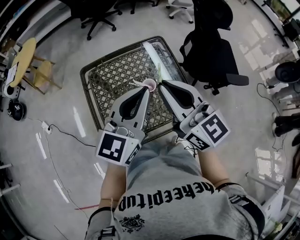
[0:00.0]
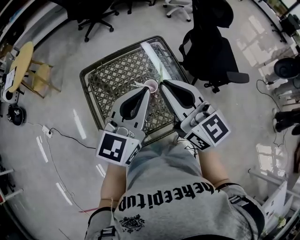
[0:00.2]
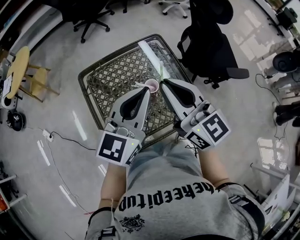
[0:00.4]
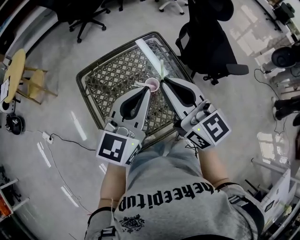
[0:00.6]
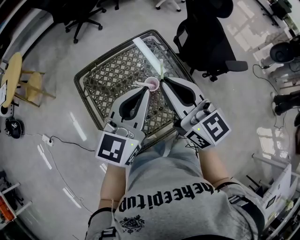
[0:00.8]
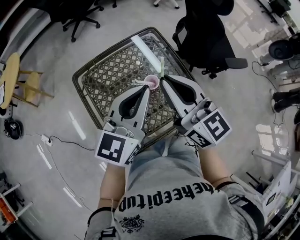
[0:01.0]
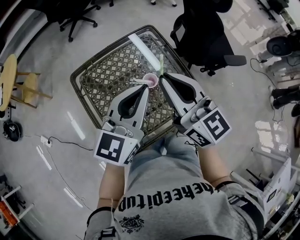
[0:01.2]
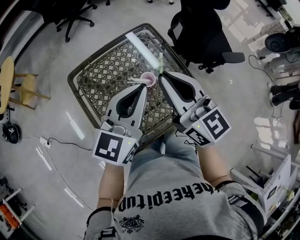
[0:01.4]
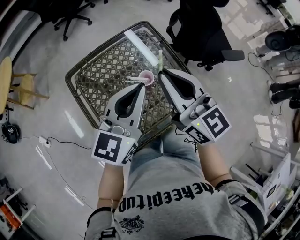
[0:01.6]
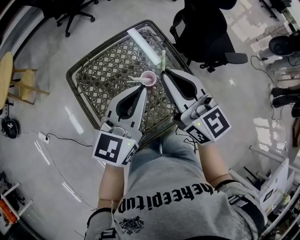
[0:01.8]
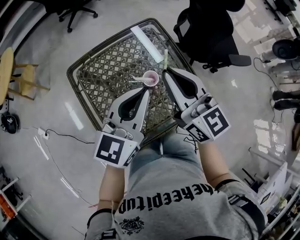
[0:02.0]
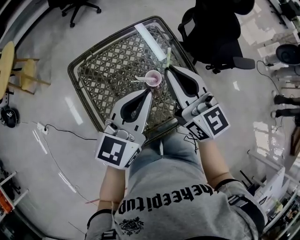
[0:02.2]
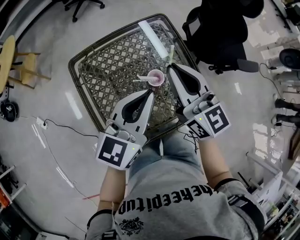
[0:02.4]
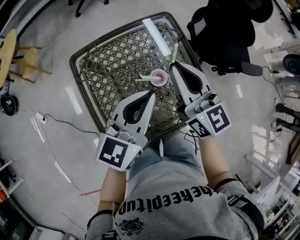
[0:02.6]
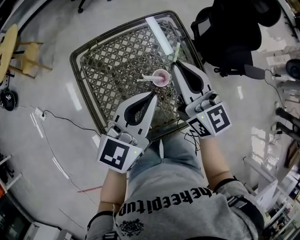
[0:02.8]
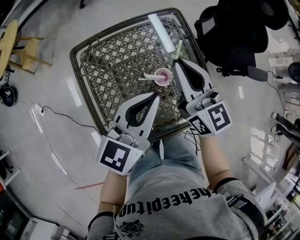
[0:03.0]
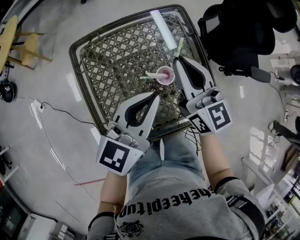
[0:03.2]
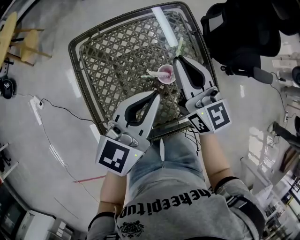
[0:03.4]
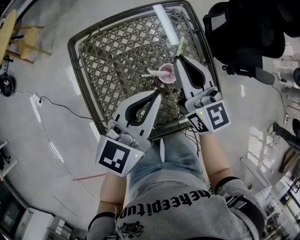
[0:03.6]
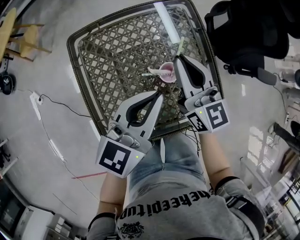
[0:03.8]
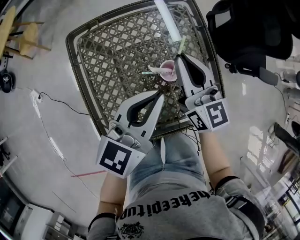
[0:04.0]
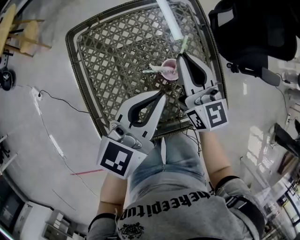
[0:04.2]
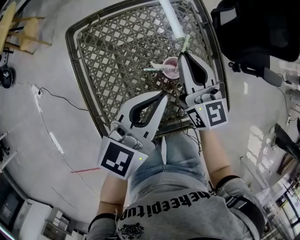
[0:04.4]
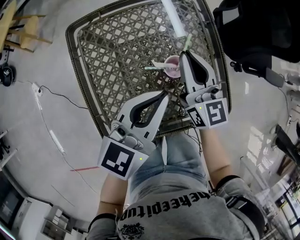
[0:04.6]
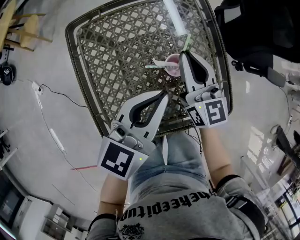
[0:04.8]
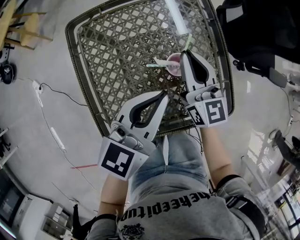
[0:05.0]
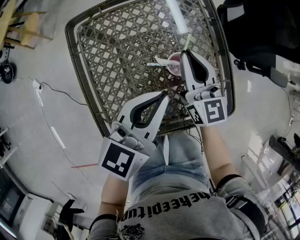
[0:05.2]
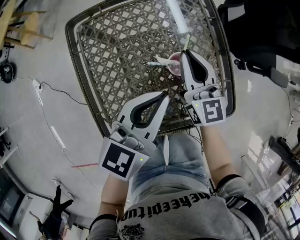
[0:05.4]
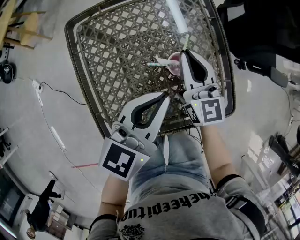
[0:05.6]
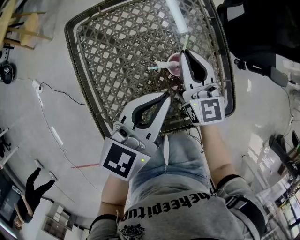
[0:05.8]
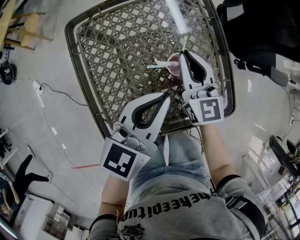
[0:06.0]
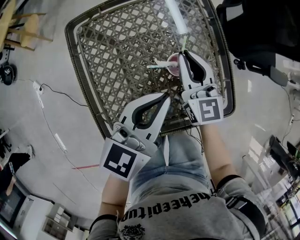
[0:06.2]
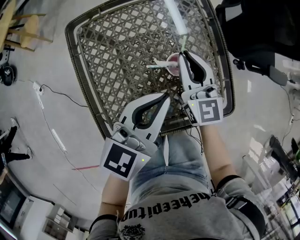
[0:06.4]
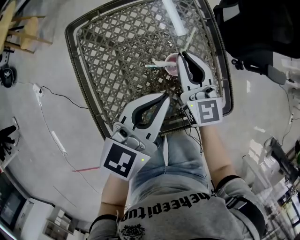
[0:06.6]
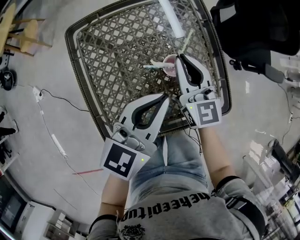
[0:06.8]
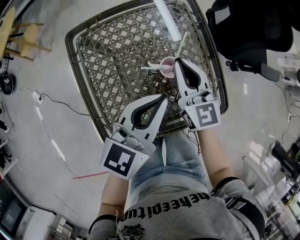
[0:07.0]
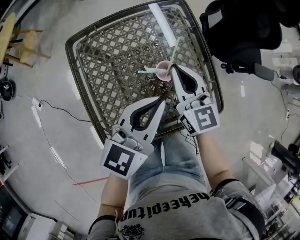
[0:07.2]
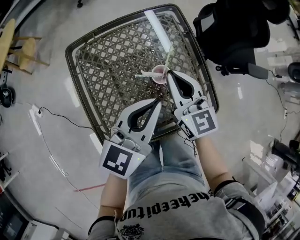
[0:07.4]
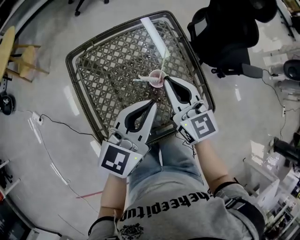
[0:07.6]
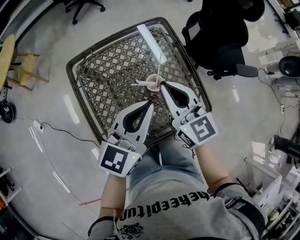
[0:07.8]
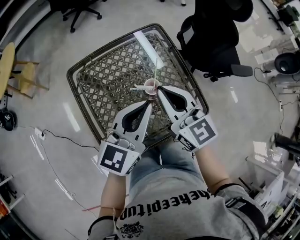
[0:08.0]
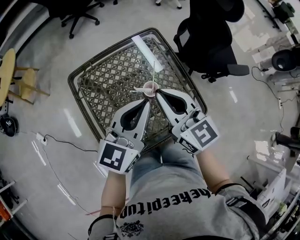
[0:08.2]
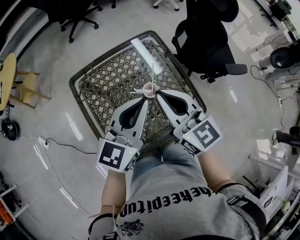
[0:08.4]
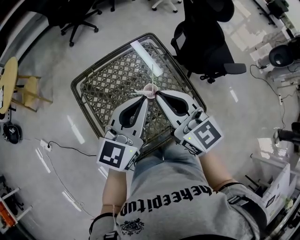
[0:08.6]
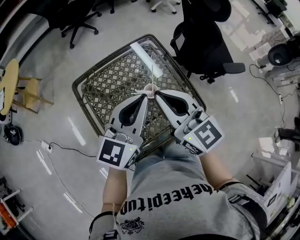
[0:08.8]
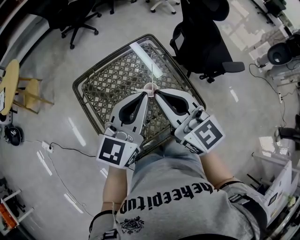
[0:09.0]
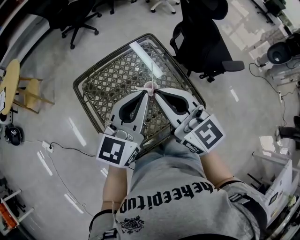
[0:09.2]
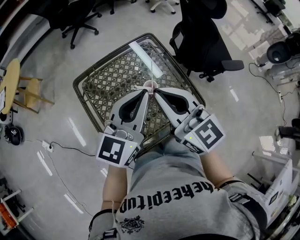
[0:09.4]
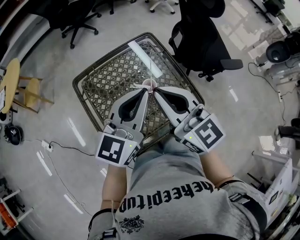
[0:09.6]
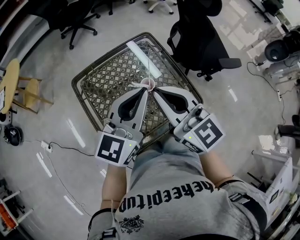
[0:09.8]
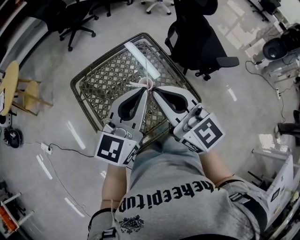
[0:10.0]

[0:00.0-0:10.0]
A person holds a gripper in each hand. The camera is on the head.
0:00.0 to 0:01.4: The right gripper shifts by some 5 cm; the left gripper moves roughly 5 cm.
0:01.4 to 0:02.8: The right gripper shifts roughly 10 cm forward and downward. Meanwhile the left gripper travels downward by some 5 cm.
0:02.8 to 0:04.2: The right gripper is displaced downward by about 10 cm; the left gripper is displaced downward by approximately 5 cm.
0:04.2 to 0:05.8: The right gripper moves downward, roughly 5 cm.
0:05.8 to 0:07.2: The right gripper changes place by about 5 cm.
0:07.2 to 0:08.6: The grippers both shift upward by roughly 15 cm.
0:08.6 to 0:10.0: The left gripper ends up about 5 cm from where it was; the right gripper travels backward by about 5 cm.

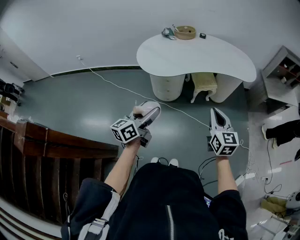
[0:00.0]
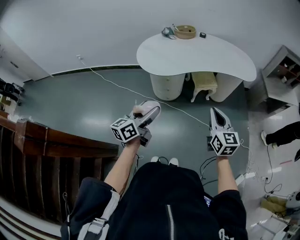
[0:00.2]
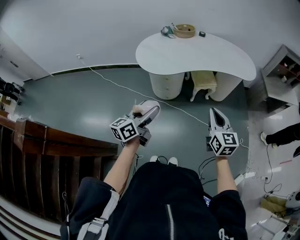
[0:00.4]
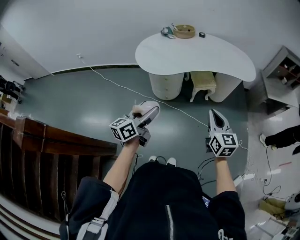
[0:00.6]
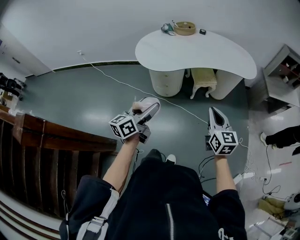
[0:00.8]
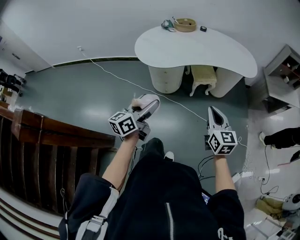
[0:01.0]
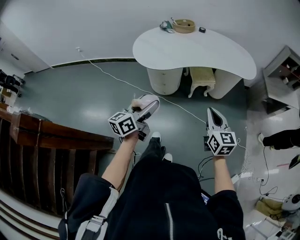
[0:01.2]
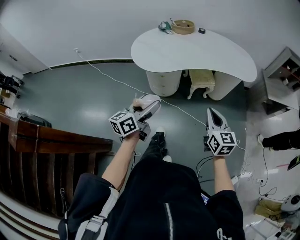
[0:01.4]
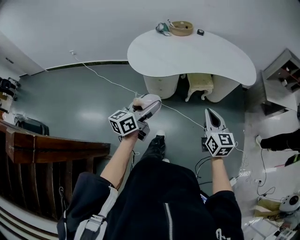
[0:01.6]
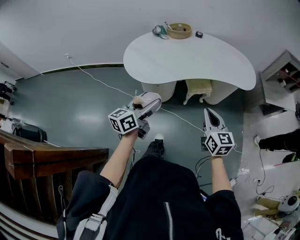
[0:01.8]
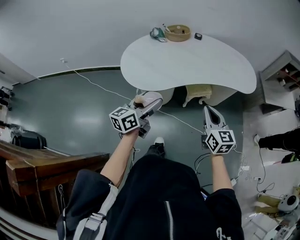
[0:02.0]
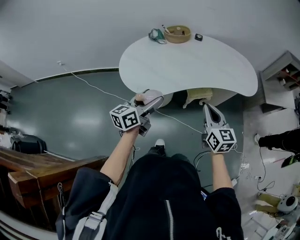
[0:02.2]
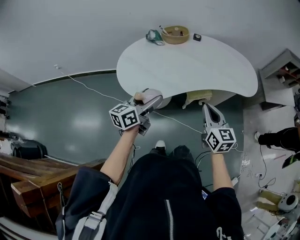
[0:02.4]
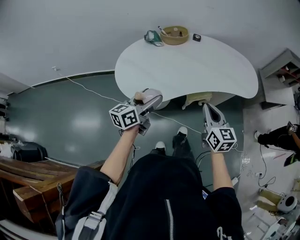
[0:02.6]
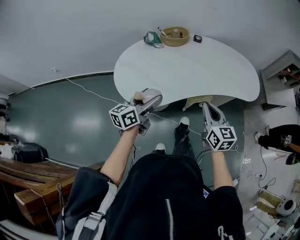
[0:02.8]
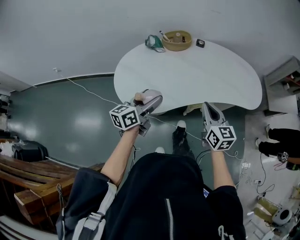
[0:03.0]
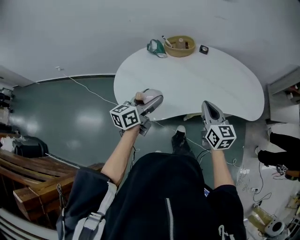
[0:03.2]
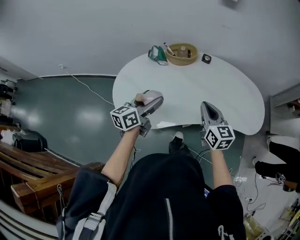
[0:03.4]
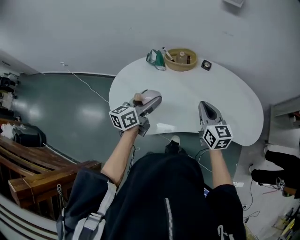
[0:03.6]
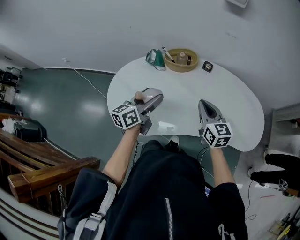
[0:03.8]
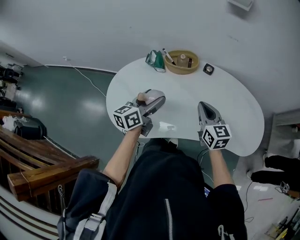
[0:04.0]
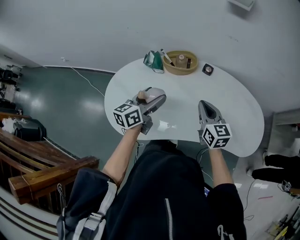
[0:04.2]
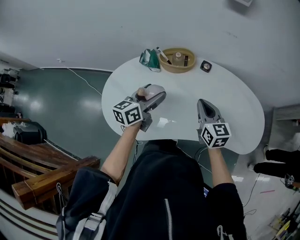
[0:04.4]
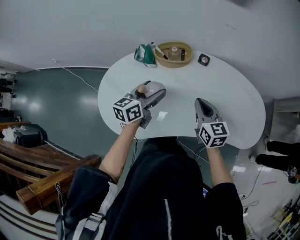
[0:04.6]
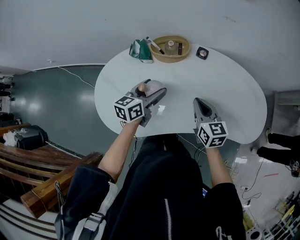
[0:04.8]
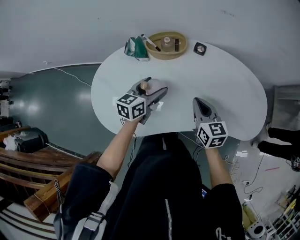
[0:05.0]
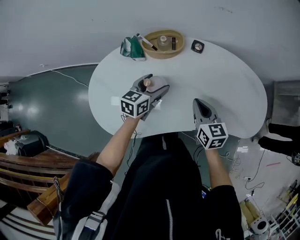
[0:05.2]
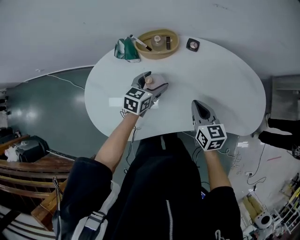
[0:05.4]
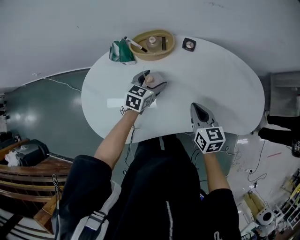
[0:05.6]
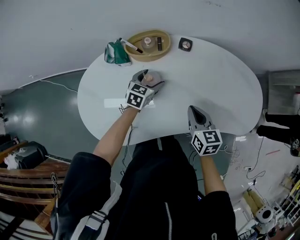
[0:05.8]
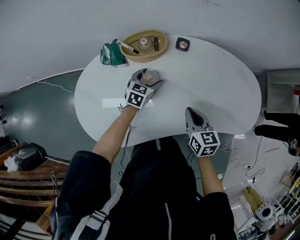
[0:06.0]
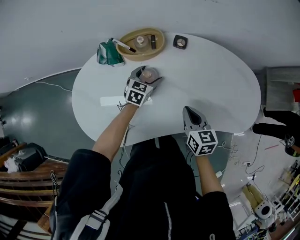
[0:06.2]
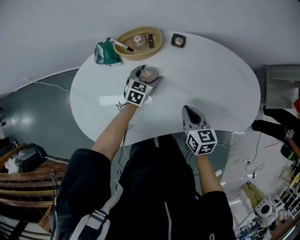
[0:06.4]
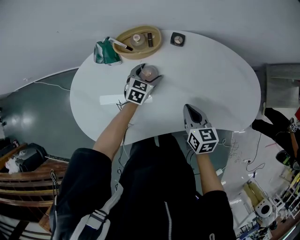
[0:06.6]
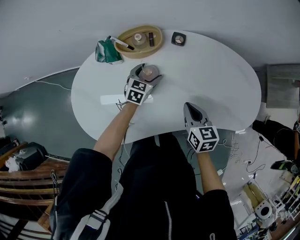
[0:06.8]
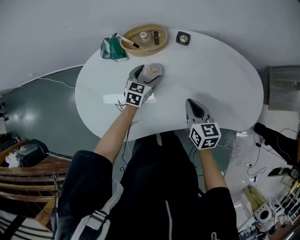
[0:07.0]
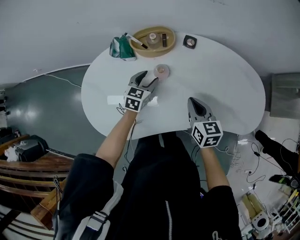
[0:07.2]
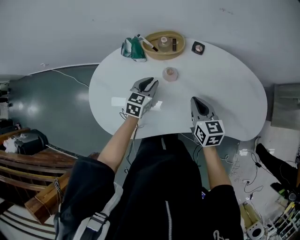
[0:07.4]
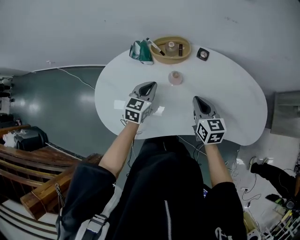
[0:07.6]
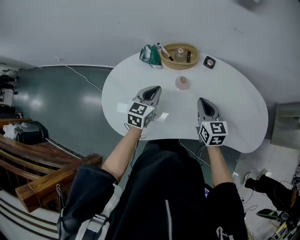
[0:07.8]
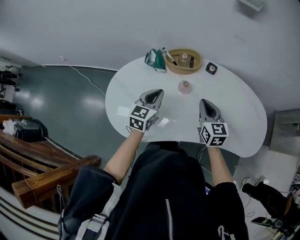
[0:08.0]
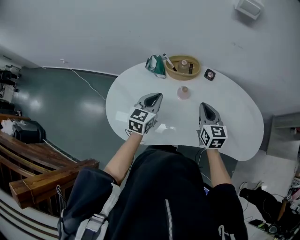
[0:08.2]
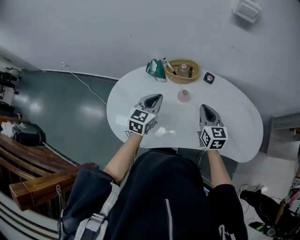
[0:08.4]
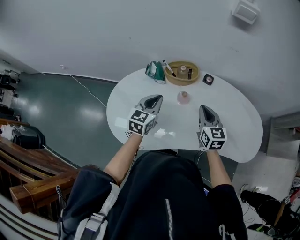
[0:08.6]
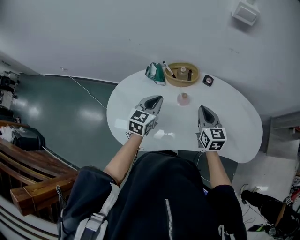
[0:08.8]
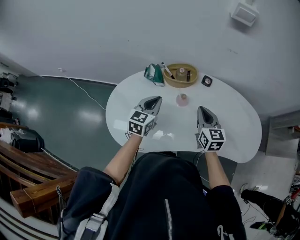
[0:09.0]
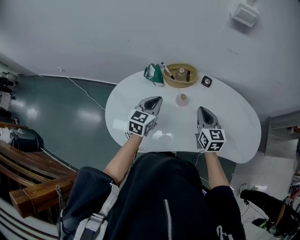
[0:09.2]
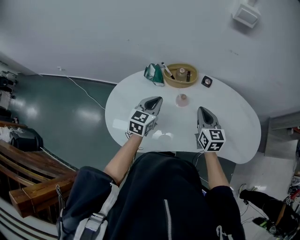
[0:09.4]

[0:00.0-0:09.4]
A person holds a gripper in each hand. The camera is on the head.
0:00.0 to 0:01.6: The left gripper shifts approximately 10 cm forward and to the right, while the right gripper shifts some 10 cm forward.
0:01.6 to 0:03.2: The grippers both shift forward by some 35 cm.
0:03.2 to 0:04.8: The right gripper moves forward and downward, about 20 cm. Meanwhile the left gripper goes some 25 cm forward and to the right.
0:04.8 to 0:06.2: The left gripper shifts some 20 cm downward, forward and to the right, and swivels approximately 40 degrees. The right gripper shifts approximately 10 cm downward.
0:06.2 to 0:07.8: The right gripper is displaced upward and to the left by about 10 cm, and rotates approximately 20 degrees. Meanwhile the left gripper moves upward, backward and to the left, about 25 cm, turns by roughly 20 degrees, and closes.
0:07.8 to 0:09.4: There are only small adjustments of the grippers.

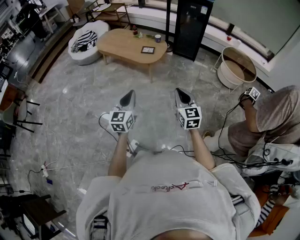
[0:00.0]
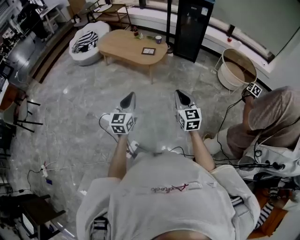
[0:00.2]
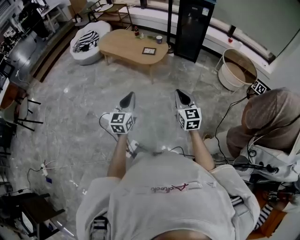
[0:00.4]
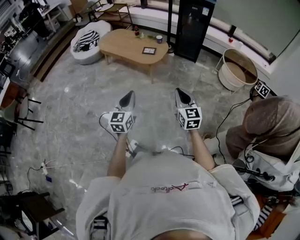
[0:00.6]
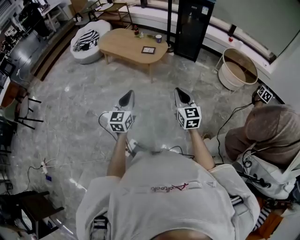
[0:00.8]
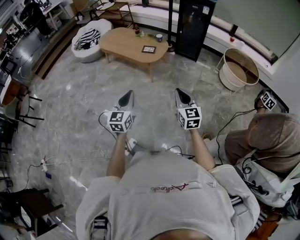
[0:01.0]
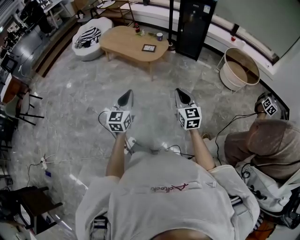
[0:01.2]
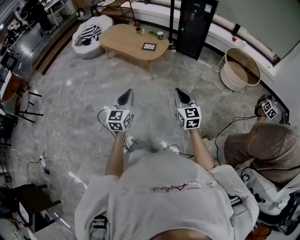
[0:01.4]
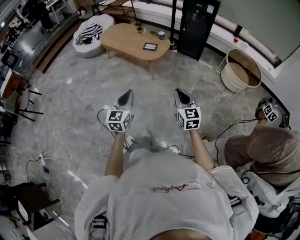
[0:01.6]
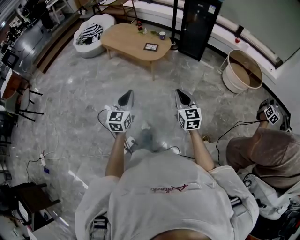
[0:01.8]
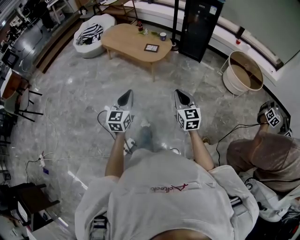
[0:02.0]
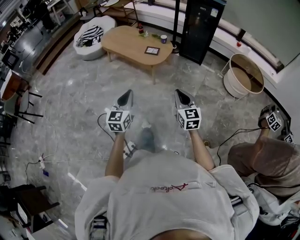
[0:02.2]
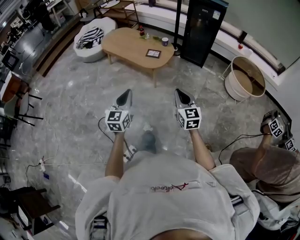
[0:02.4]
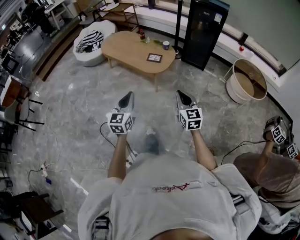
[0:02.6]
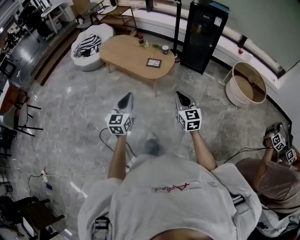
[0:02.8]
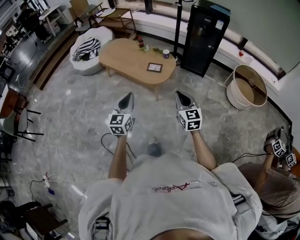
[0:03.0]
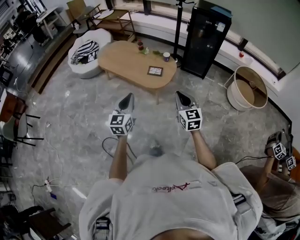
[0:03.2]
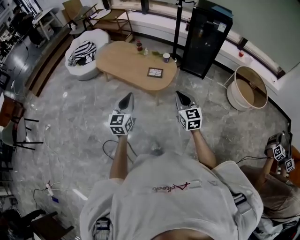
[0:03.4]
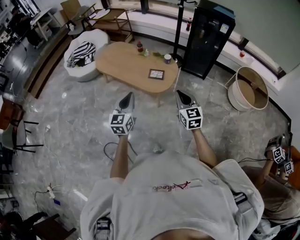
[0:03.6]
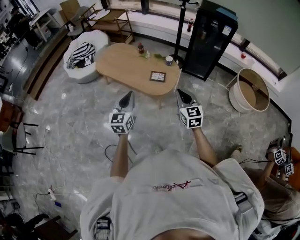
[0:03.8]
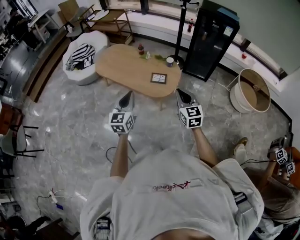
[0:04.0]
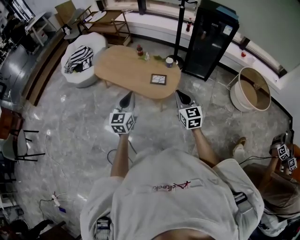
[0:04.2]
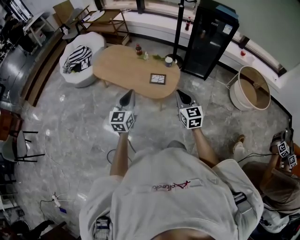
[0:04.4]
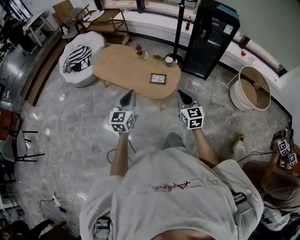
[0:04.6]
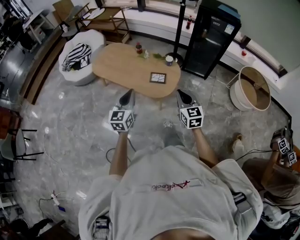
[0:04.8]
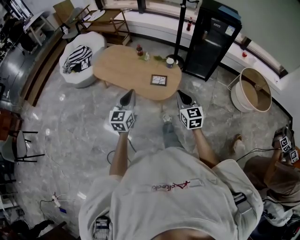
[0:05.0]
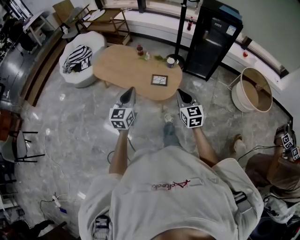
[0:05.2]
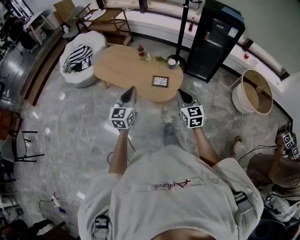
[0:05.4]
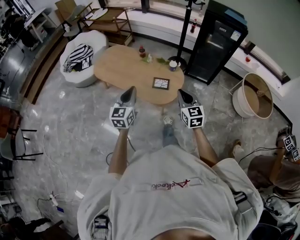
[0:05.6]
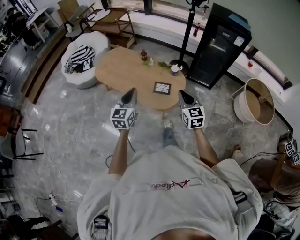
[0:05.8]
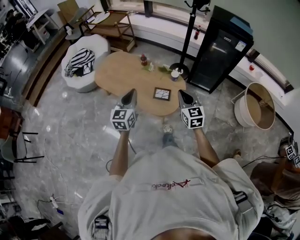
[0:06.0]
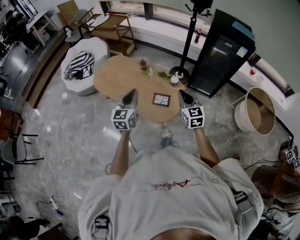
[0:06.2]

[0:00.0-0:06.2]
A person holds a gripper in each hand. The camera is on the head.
0:00.0 to 0:01.6: The two grippers go approximately 5 cm to the right.
0:01.6 to 0:03.2: The grippers both shift forward by approximately 35 cm.
0:03.2 to 0:04.6: The two grippers go approximately 20 cm forward.
0:04.6 to 0:06.2: Both grippers move forward, some 25 cm.
